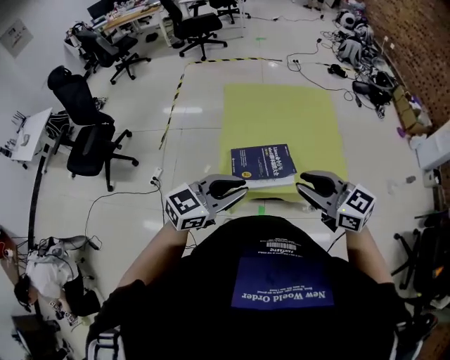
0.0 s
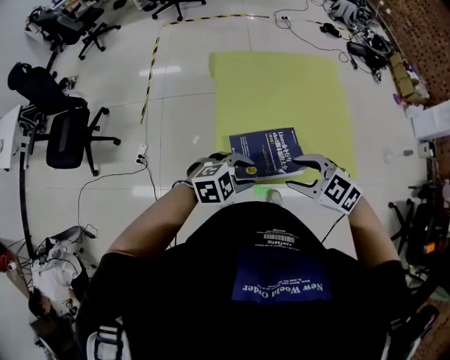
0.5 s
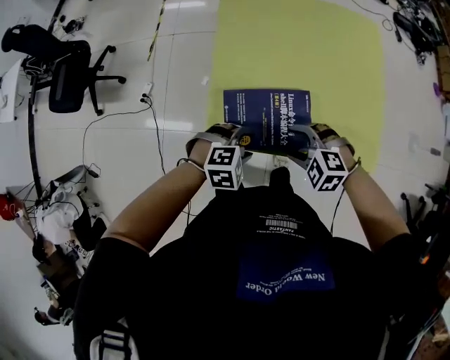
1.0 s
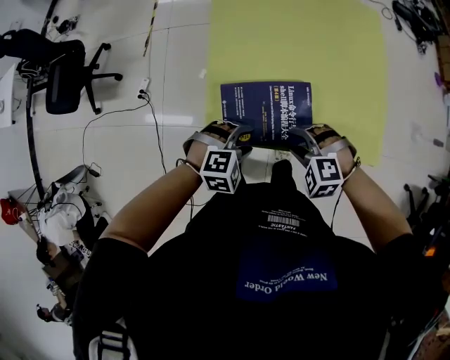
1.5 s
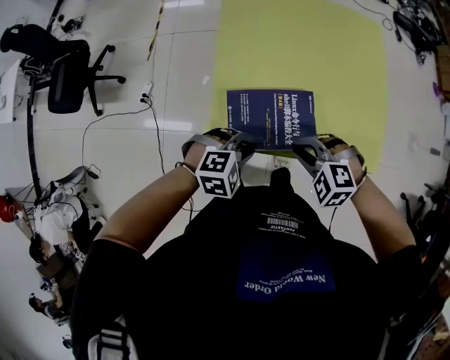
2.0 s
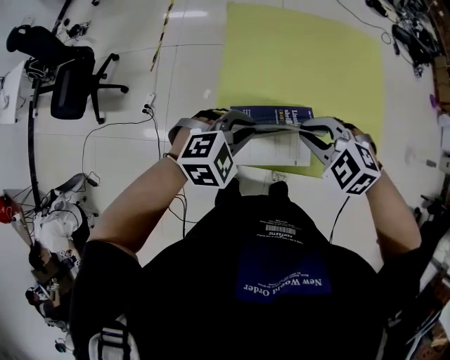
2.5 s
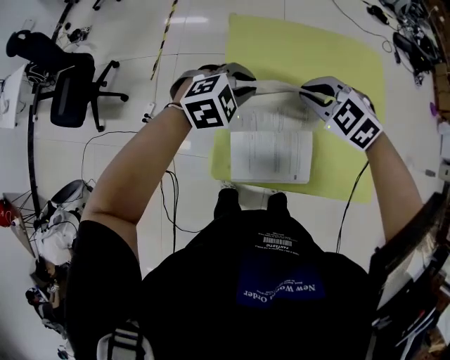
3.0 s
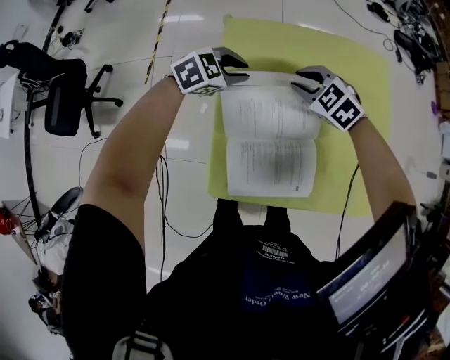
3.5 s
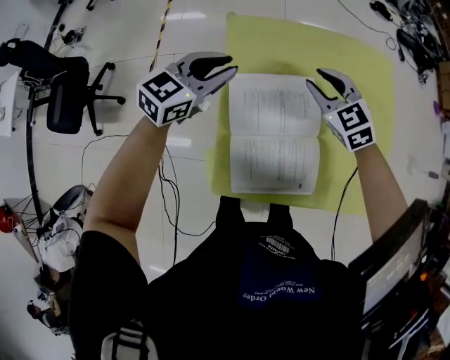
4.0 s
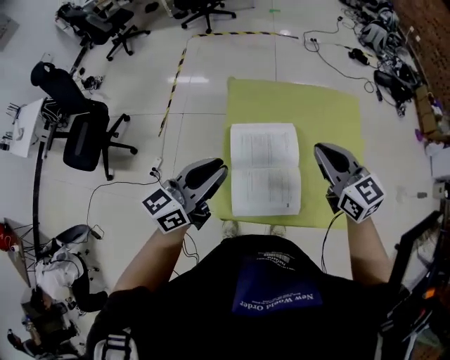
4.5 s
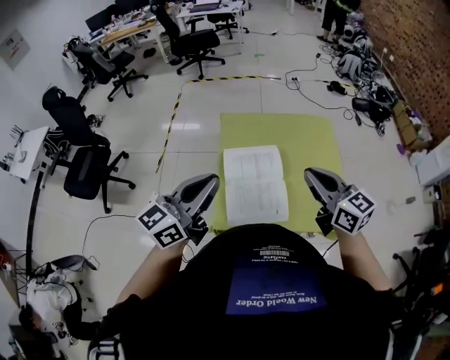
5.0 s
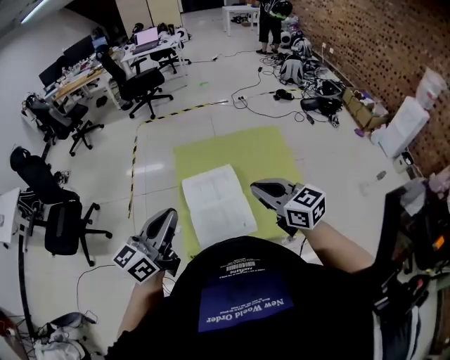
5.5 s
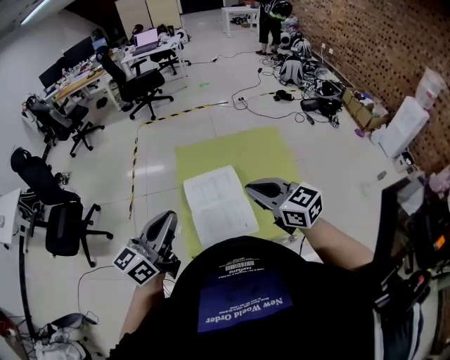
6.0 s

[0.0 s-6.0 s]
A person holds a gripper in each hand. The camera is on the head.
0.0 to 2.0 s: The two grippers go approximately 25 cm downward. The left gripper tips its fingers downward by roughly 50 degrees, and opens, then closes once more, while the right gripper points its fingers some 50 degrees further downward, and opens and closes again.
2.0 to 4.0 s: The left gripper moves up and down over about 10 cm, changing direction 2 times, and points its fingers approximately 40 degrees further upward. Meanwhile the right gripper goes up and down, some 10 cm each way, reversing 2 times, and rotates some 50 degrees.
4.0 to 6.0 s: The two grippers go approximately 35 cm backward and upward. The right gripper swivels approximately 30 degrees, and closes, while the left gripper turns by approximately 40 degrees.

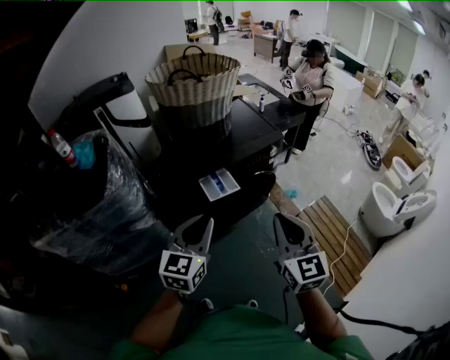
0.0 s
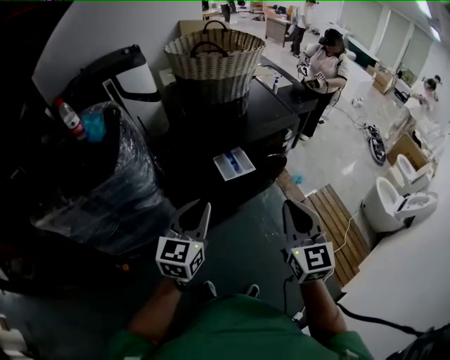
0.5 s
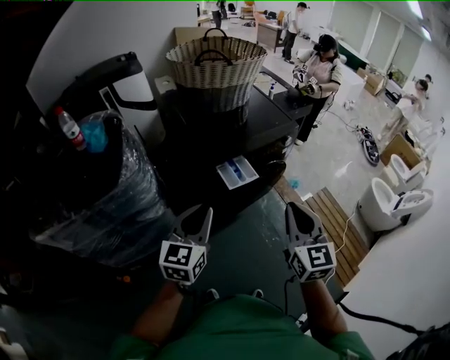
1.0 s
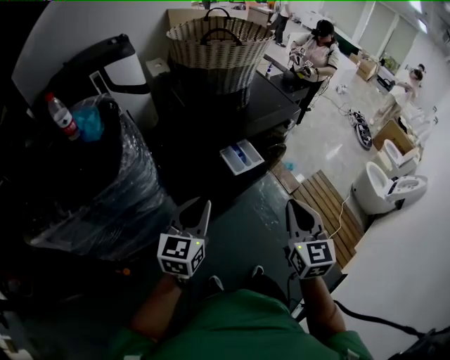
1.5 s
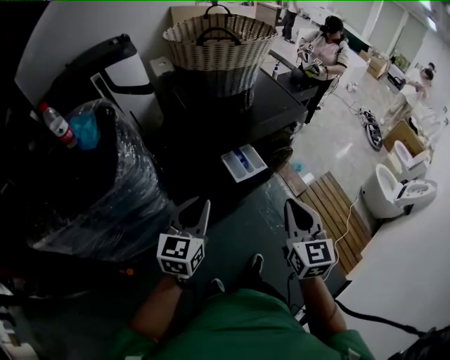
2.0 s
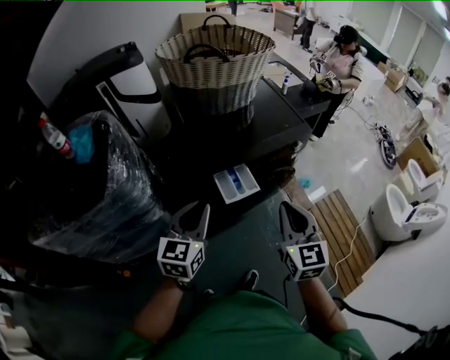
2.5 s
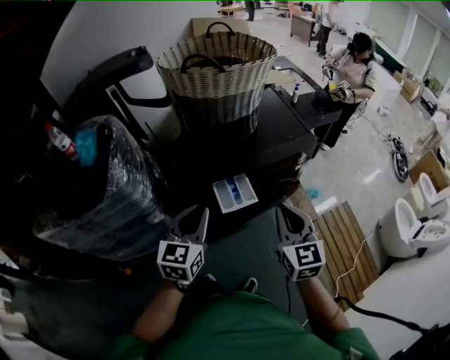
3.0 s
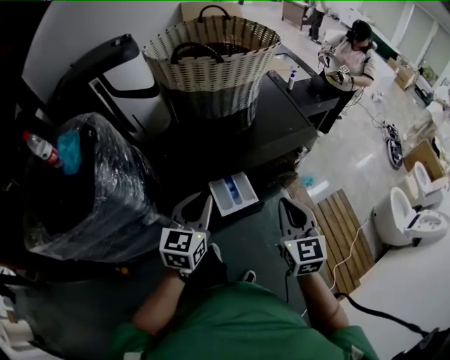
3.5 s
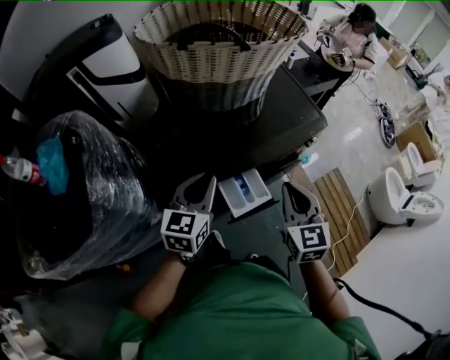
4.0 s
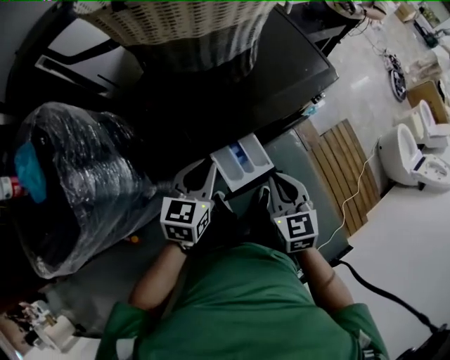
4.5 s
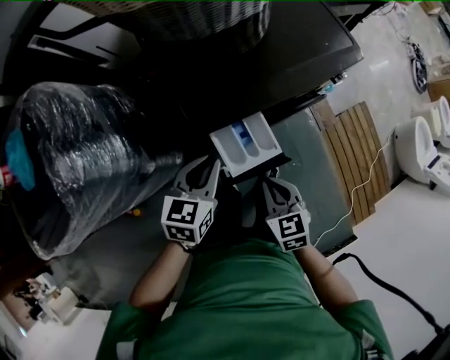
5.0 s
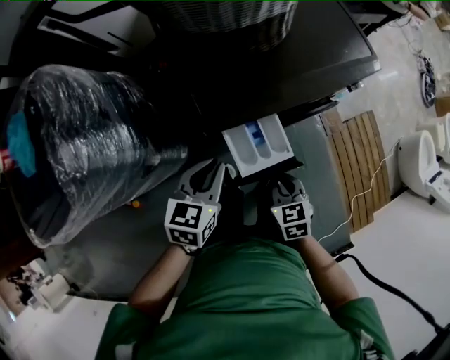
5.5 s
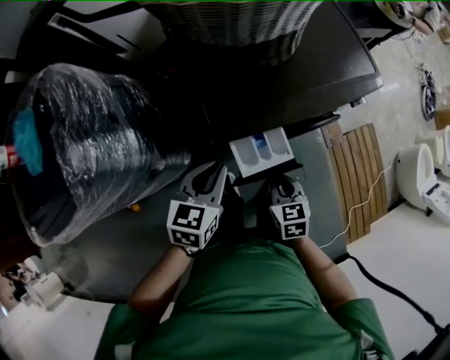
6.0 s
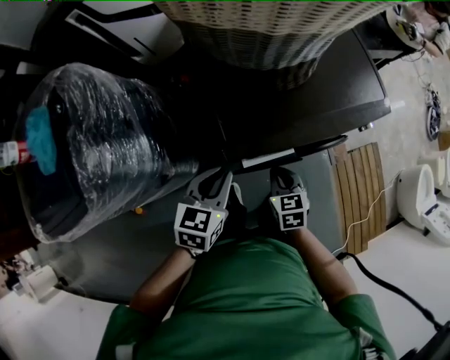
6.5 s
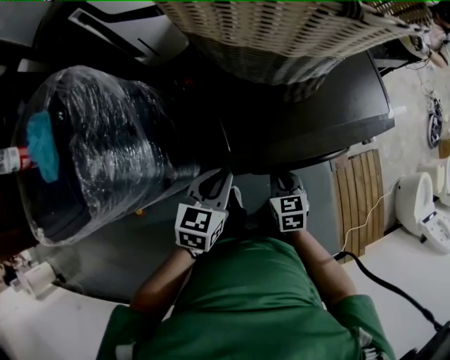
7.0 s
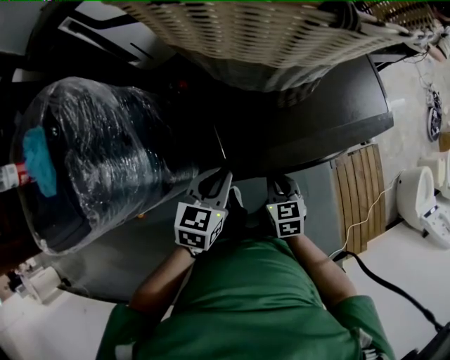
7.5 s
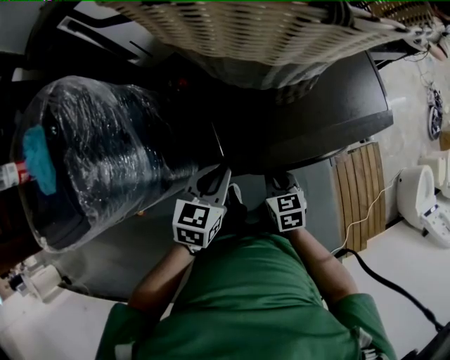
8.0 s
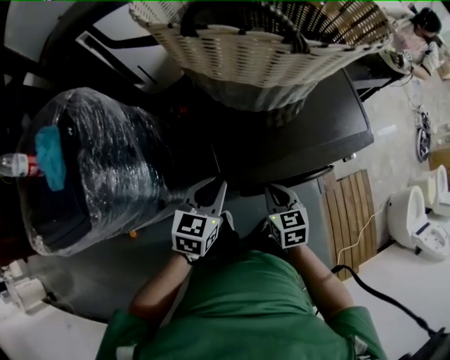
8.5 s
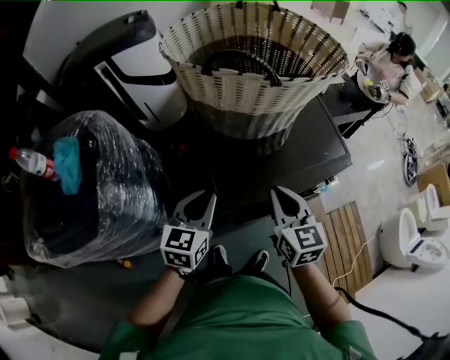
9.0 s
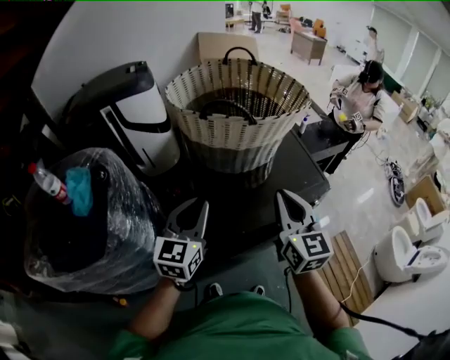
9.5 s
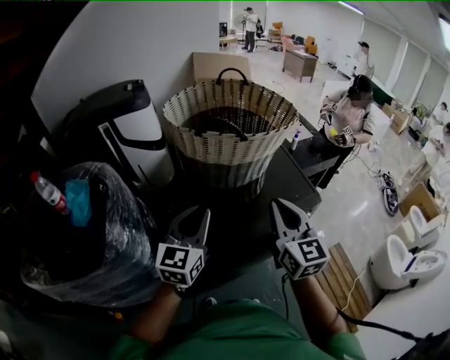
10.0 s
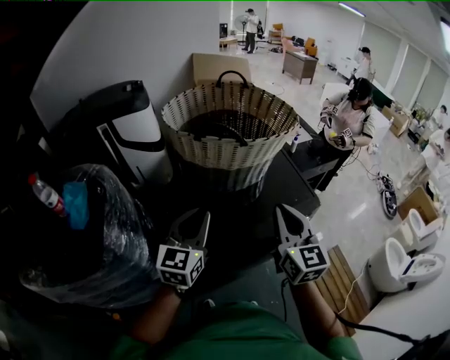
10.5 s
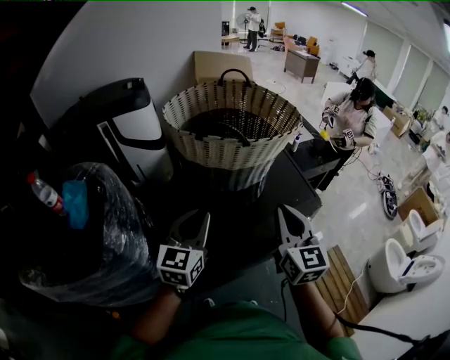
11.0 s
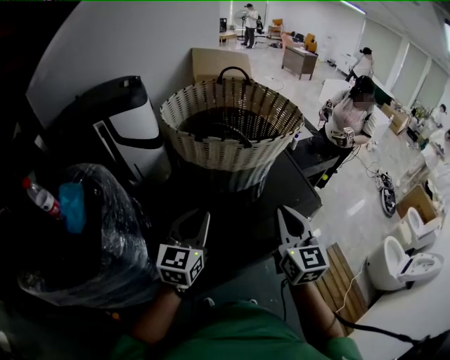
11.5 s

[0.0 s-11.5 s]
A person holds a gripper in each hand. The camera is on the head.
0.0 to 2.0 s: The left gripper heads to the left and forward, covering about 20 cm. The right gripper travels to the left, forward and downward by about 15 cm.
2.0 to 4.0 s: The grippers both shift forward by approximately 25 cm.
4.0 to 6.0 s: The left gripper goes about 15 cm downward, and swivels roughly 20 degrees, while the right gripper travels downward by about 25 cm, and turns by some 30 degrees.
6.0 to 7.5 s: The two grippers go roughly 10 cm forward.
7.5 to 9.5 s: The left gripper is displaced upward by approximately 25 cm, and tilts its fingers some 30 degrees upward; the right gripper travels upward by about 40 cm, and angles its fingers upward, by approximately 40 degrees.
9.5 to 11.5 s: The grippers move only a little.

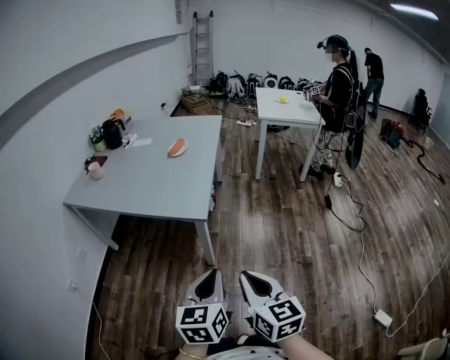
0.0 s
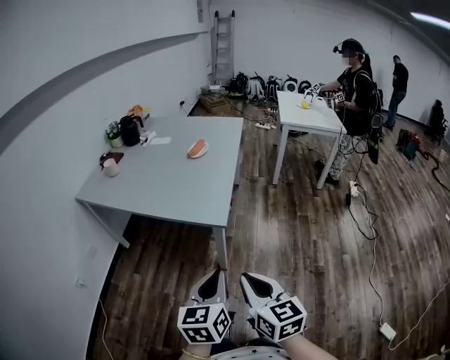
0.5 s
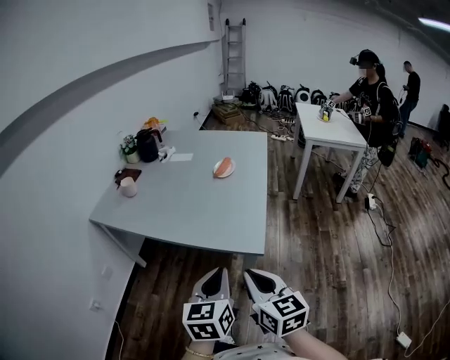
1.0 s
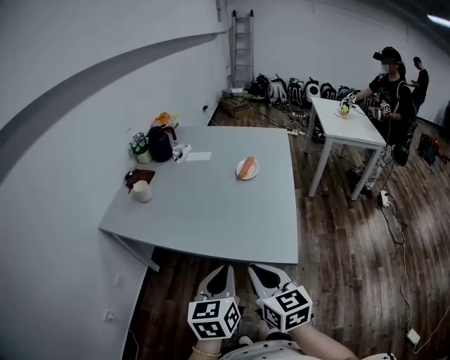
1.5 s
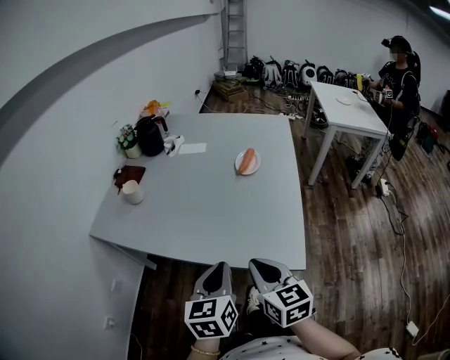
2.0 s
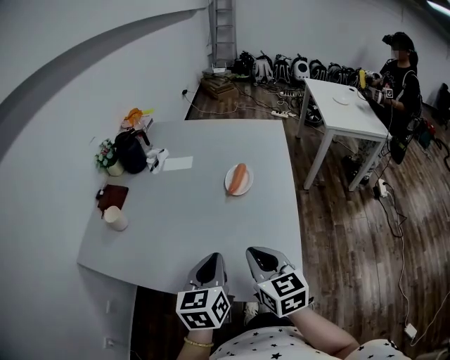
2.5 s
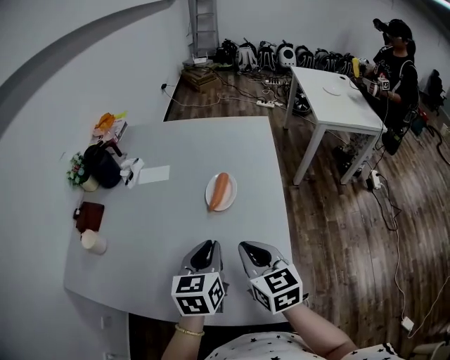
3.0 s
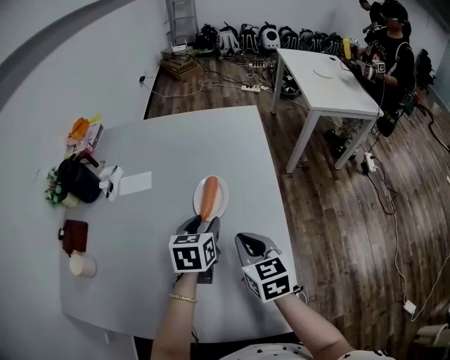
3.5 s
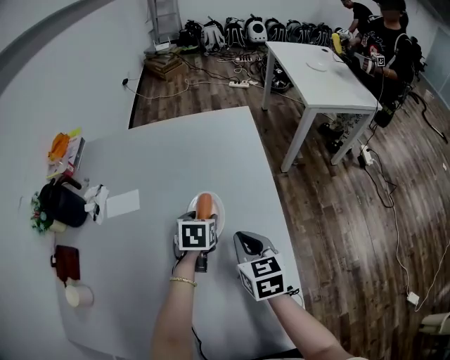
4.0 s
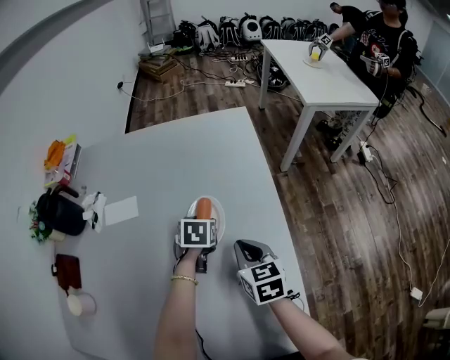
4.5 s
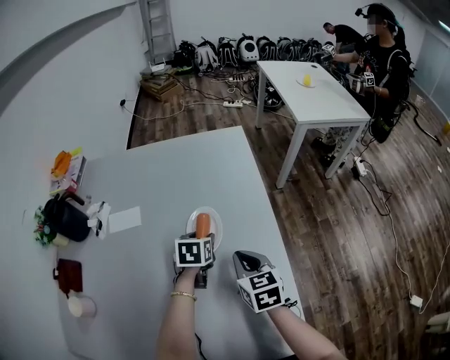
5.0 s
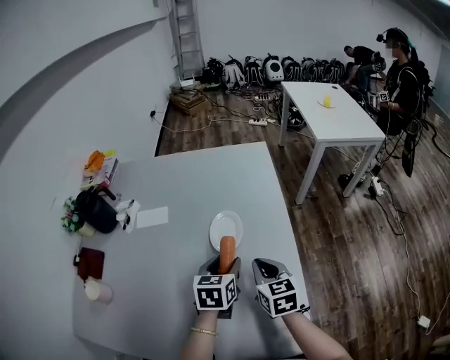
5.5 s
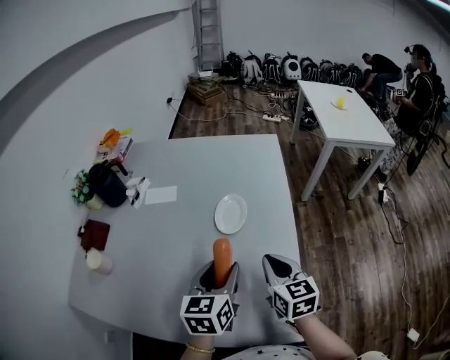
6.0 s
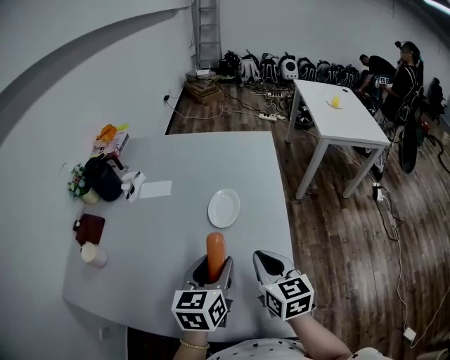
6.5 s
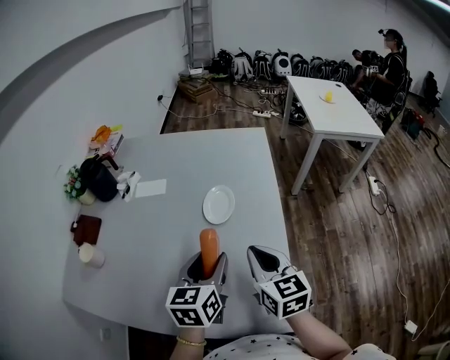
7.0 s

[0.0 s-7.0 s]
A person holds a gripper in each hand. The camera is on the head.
0.0 to 2.0 s: The two grippers travel together, forward and to the left, some 50 cm.
2.0 to 3.5 s: Both grippers move forward, some 40 cm. The left gripper turns by some 30 degrees, and opens its fingers.
3.5 to 5.0 s: The left gripper moves forward and downward, some 10 cm. The right gripper is displaced forward by some 5 cm.
5.0 to 7.0 s: The right gripper moves backward and upward, some 15 cm, while the left gripper shifts some 30 cm backward and upward, and swivels about 30 degrees.

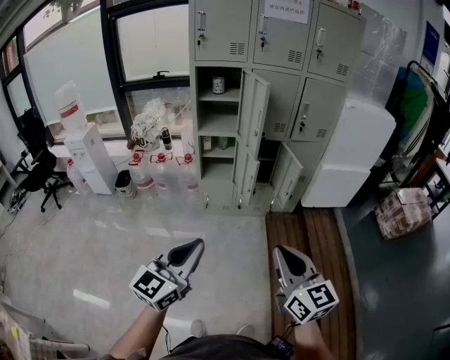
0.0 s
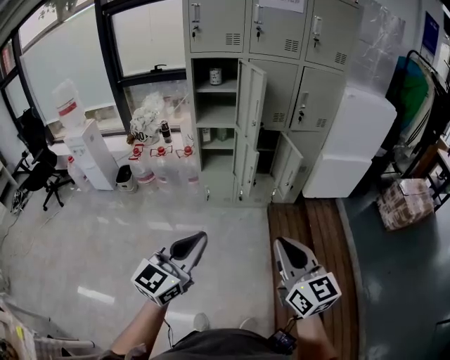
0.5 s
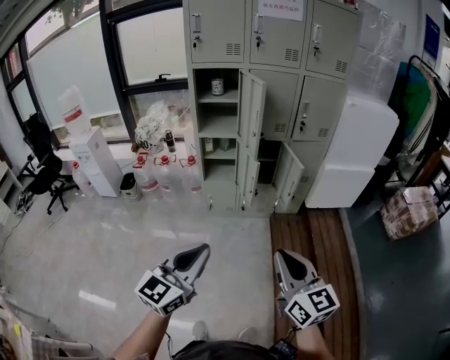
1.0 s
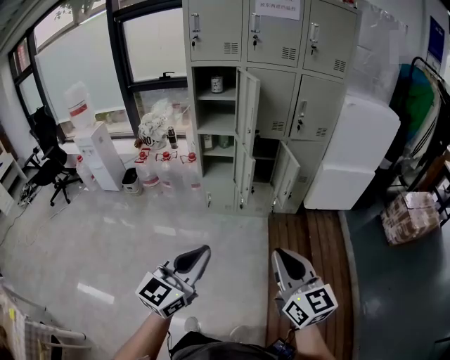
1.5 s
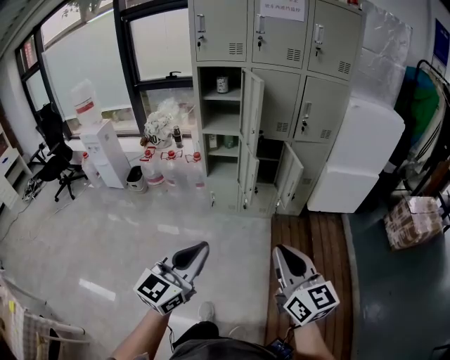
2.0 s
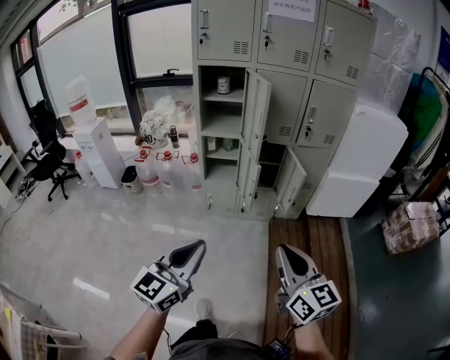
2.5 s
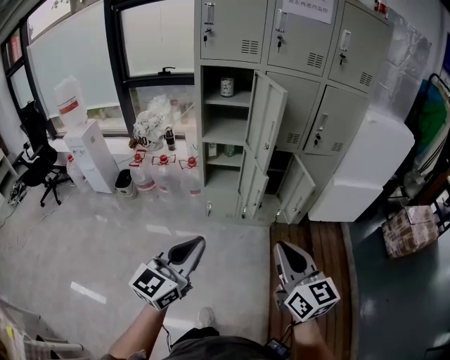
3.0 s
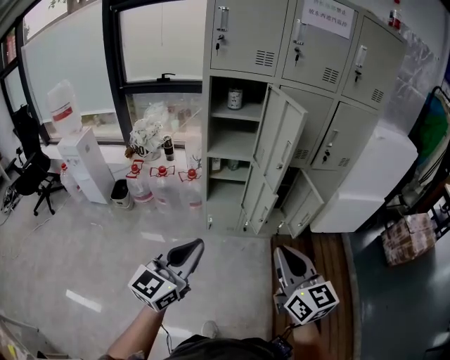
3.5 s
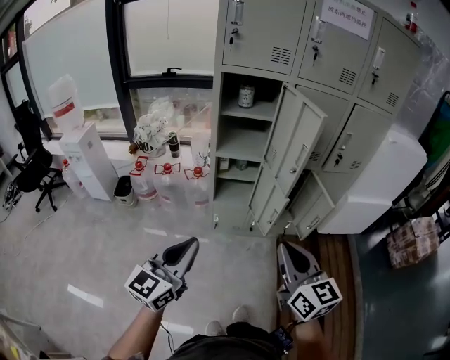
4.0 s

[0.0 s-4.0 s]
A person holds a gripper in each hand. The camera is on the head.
0.0 to 2.0 s: The two grippers go about 10 cm to the right.
2.0 to 4.0 s: The grippers both shift forward and to the left by approximately 35 cm.
